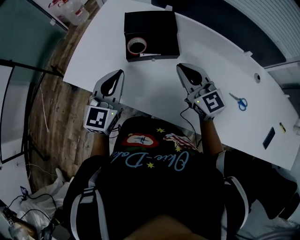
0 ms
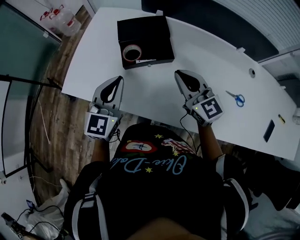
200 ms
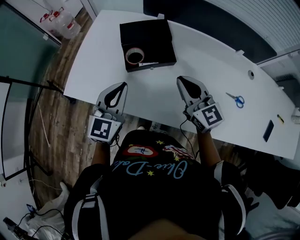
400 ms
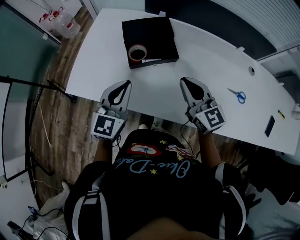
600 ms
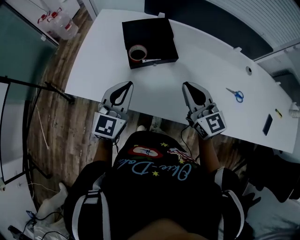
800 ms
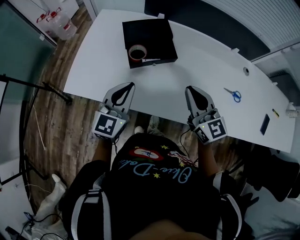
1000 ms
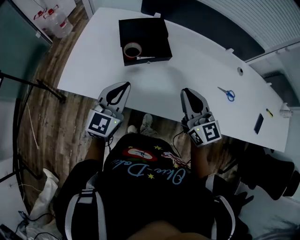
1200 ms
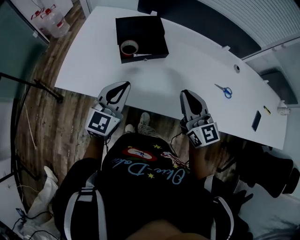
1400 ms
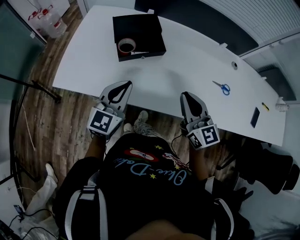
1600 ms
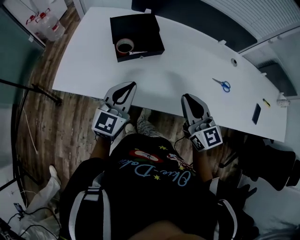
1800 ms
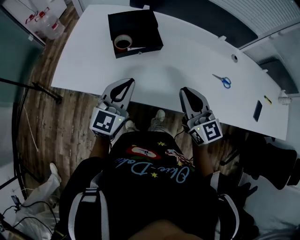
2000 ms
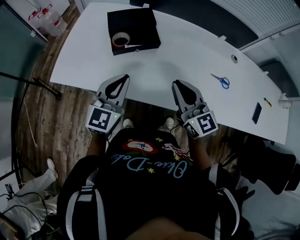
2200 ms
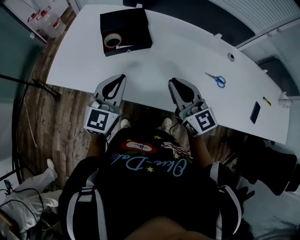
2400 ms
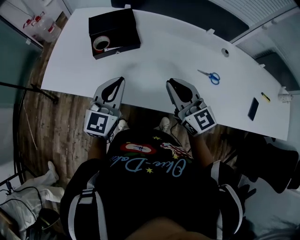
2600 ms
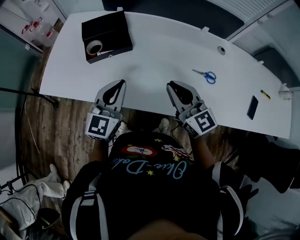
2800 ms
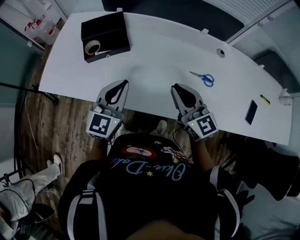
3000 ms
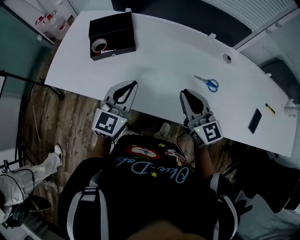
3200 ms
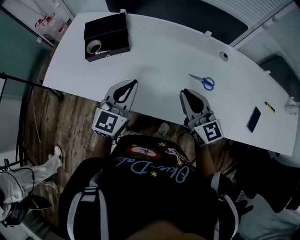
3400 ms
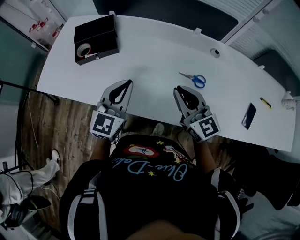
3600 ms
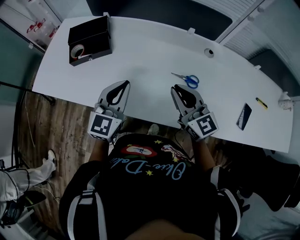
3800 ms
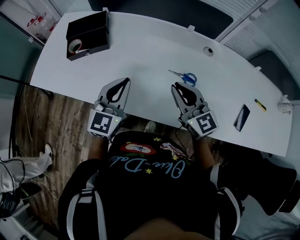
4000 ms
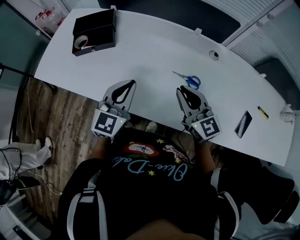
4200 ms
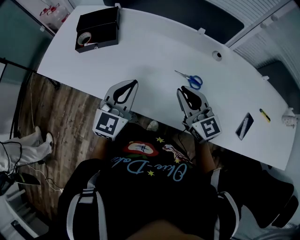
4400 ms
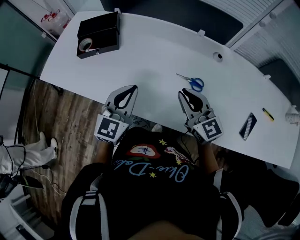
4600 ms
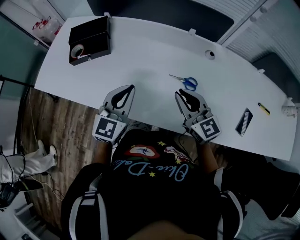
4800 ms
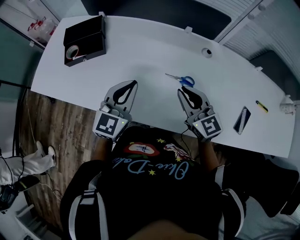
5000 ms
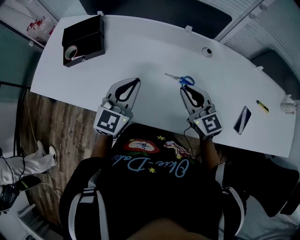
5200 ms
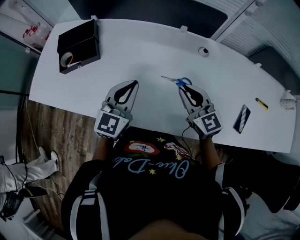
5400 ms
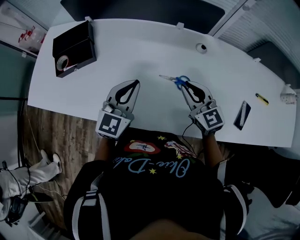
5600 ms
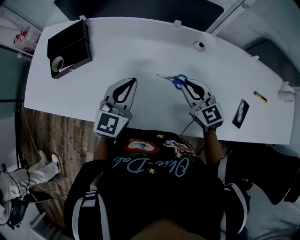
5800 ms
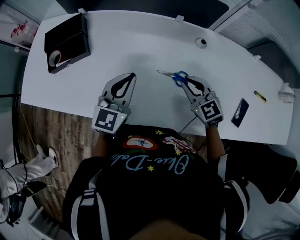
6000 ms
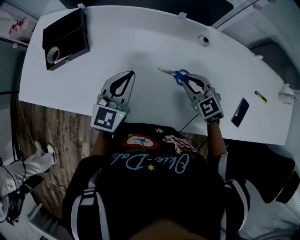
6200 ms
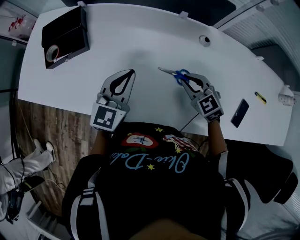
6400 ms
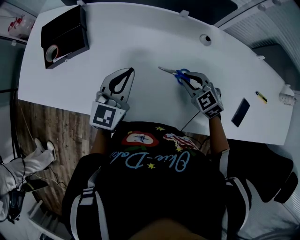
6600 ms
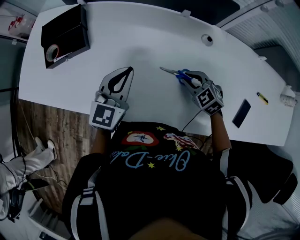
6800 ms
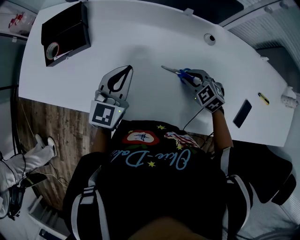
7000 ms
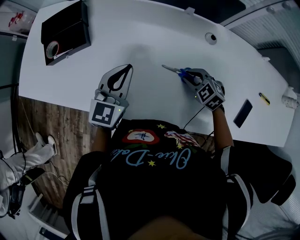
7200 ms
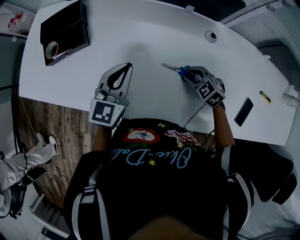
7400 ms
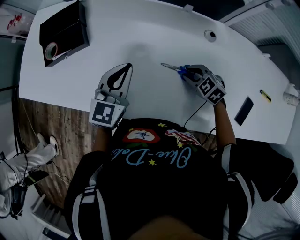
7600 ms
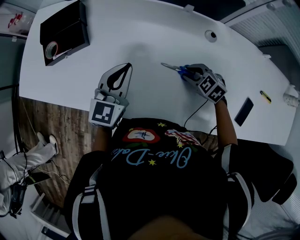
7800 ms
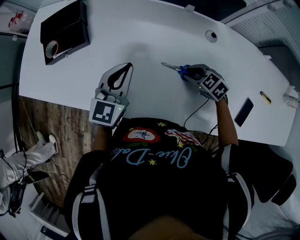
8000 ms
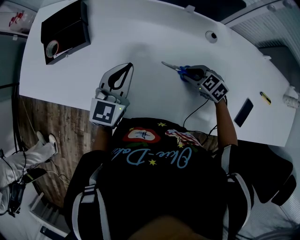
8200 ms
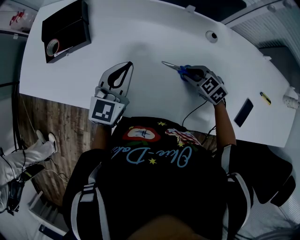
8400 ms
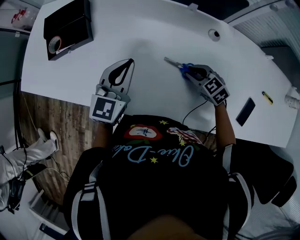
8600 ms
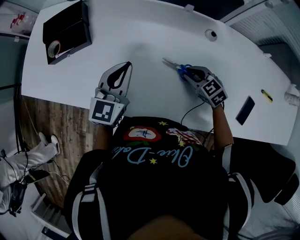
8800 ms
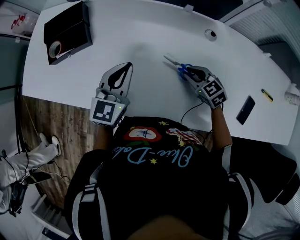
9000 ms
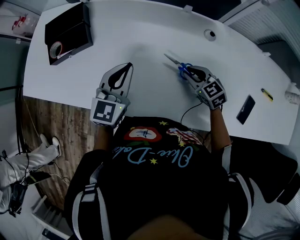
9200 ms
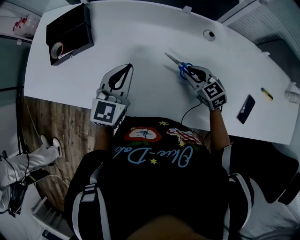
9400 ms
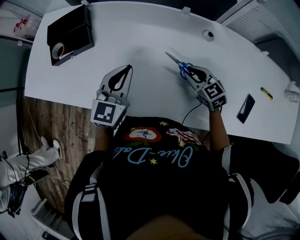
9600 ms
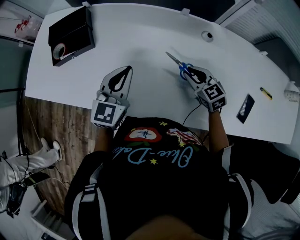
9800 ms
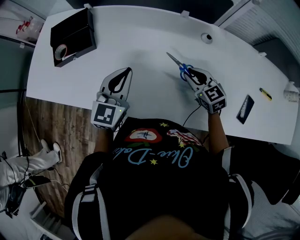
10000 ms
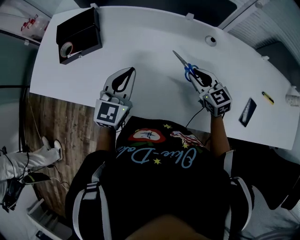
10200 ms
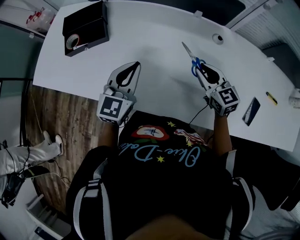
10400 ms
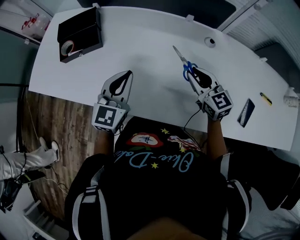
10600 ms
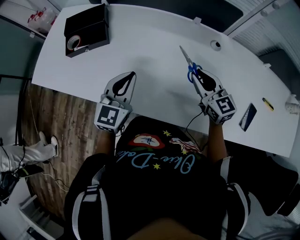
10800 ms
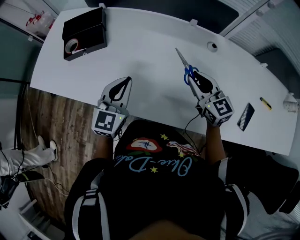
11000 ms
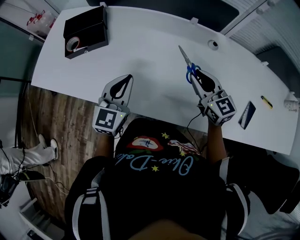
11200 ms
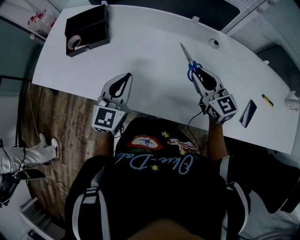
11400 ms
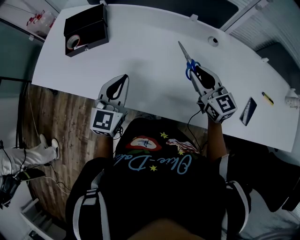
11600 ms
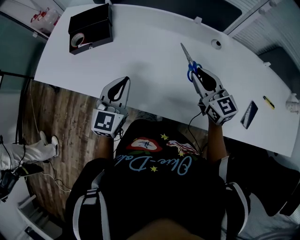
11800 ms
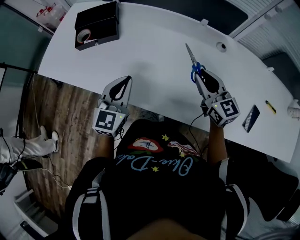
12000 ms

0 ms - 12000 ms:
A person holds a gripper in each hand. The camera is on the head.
0 ms - 1600 ms: The left gripper goes some 5 cm backward. The right gripper goes some 15 cm backward, and swivels approximately 20 degrees.
1600 ms - 3000 ms: The grippers both shift to the right by approximately 15 cm.
3000 ms - 4400 ms: The grippers both shift to the right by approximately 15 cm.
4400 ms - 6000 ms: The left gripper heads forward and to the right, covering some 10 cm; the right gripper heads to the right, downward and forward, covering some 15 cm, and rotates about 30 degrees.
6000 ms - 7600 ms: The right gripper moves downward, about 10 cm, and rotates approximately 30 degrees.
7600 ms - 9000 ms: The grippers move only a little.
9000 ms - 10400 ms: The right gripper goes approximately 10 cm upward, and changes its angle by roughly 30 degrees.
10400 ms - 12000 ms: The right gripper goes roughly 5 cm upward. The left gripper shifts approximately 10 cm backward and to the left.

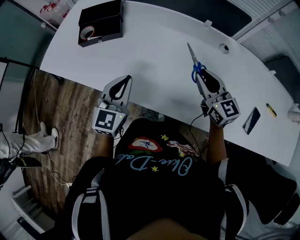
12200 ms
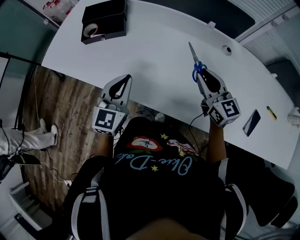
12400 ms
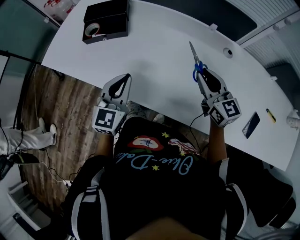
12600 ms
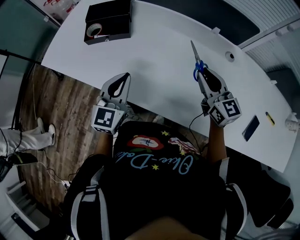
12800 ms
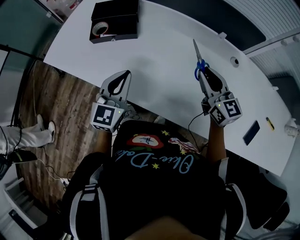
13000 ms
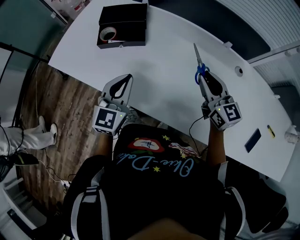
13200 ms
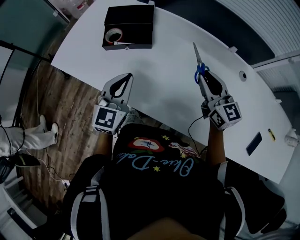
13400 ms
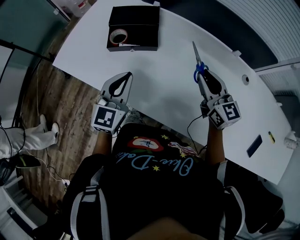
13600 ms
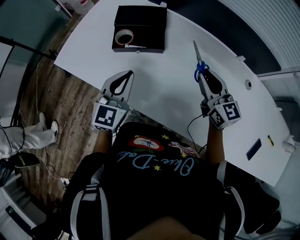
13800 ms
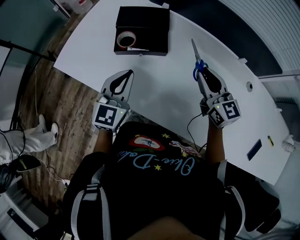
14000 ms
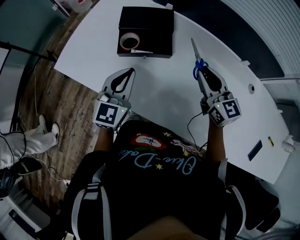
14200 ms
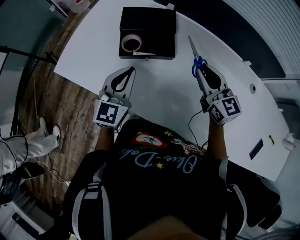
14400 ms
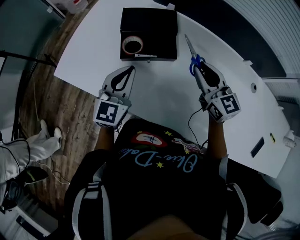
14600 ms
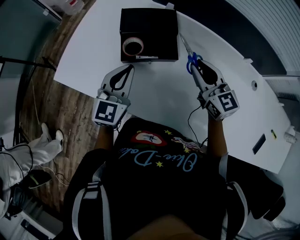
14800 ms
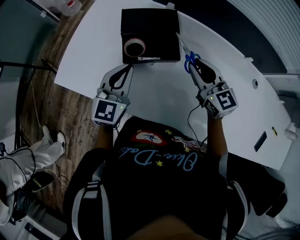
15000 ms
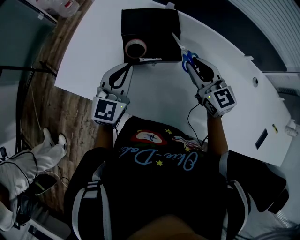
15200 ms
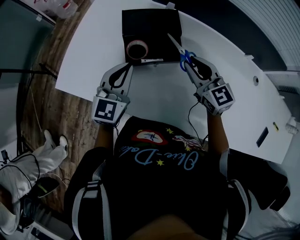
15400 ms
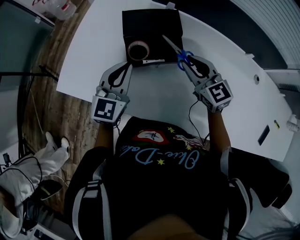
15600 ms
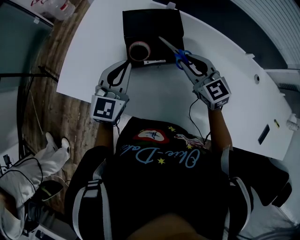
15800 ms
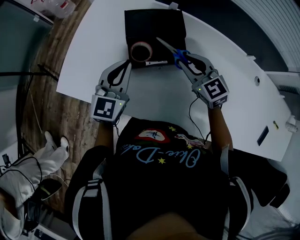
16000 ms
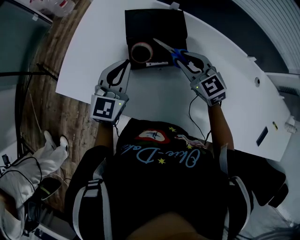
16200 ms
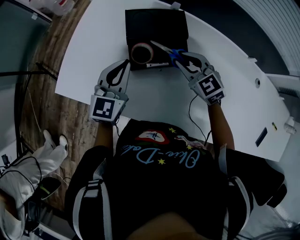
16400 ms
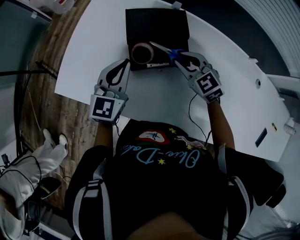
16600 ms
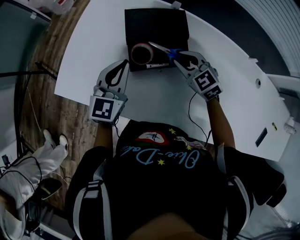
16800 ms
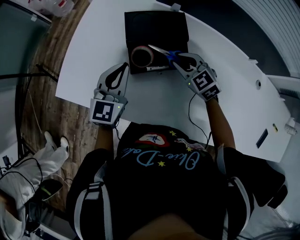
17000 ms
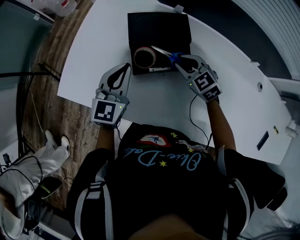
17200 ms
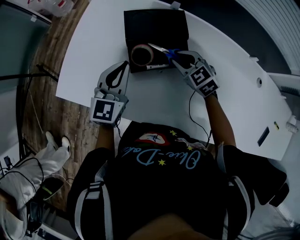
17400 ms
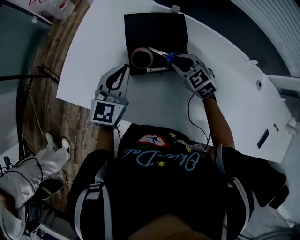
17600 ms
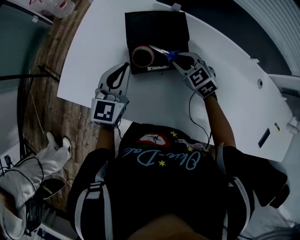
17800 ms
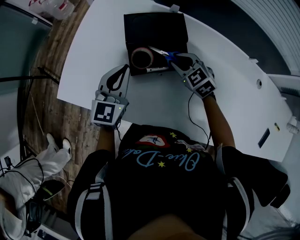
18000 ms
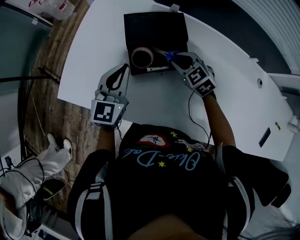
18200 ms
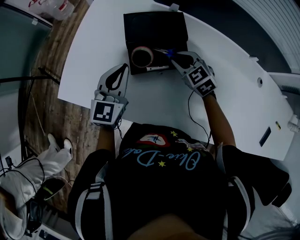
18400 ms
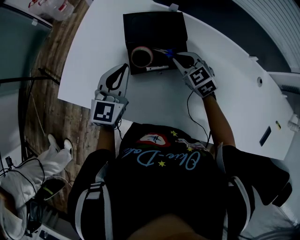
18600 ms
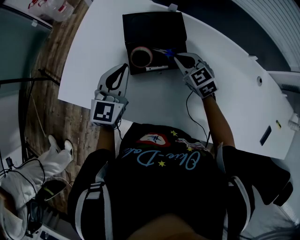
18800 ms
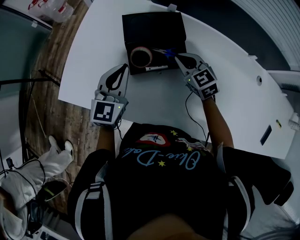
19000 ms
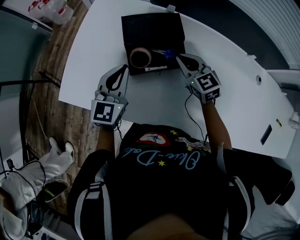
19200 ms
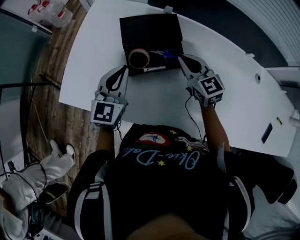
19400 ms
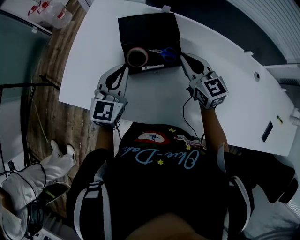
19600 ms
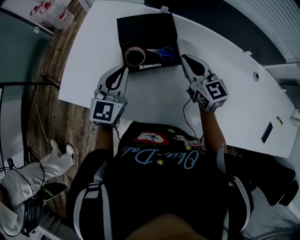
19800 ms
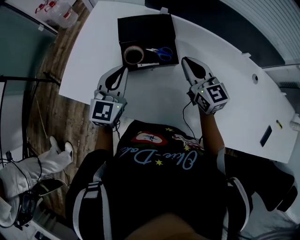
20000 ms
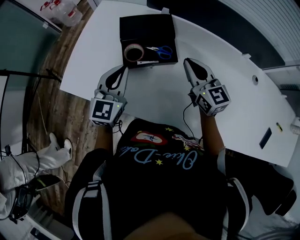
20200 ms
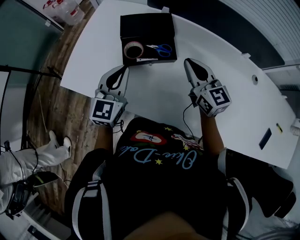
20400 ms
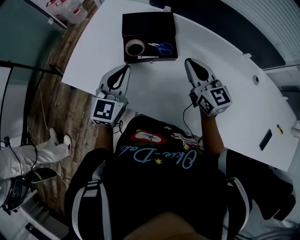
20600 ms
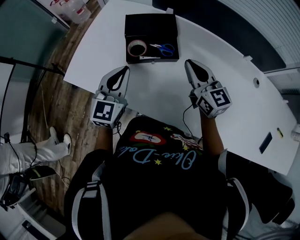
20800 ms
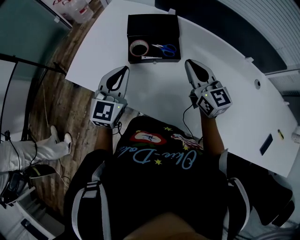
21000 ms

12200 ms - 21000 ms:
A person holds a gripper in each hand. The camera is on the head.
12200 ms - 13600 ms: The grippers both shift to the left and forward by roughly 20 cm.
13600 ms - 15200 ms: The right gripper heads to the left and forward, covering roughly 20 cm. Meanwhile the left gripper travels forward and to the left by approximately 15 cm.
15200 ms - 16600 ms: The right gripper travels downward, to the left and forward by approximately 10 cm, and swivels some 30 degrees. The left gripper ends up about 5 cm from where it was.
16600 ms - 18000 ms: The grippers move only a little.
18000 ms - 19600 ms: The right gripper is displaced upward by roughly 10 cm, and swivels approximately 40 degrees.
19600 ms - 21000 ms: Both grippers travel together backward, about 10 cm.

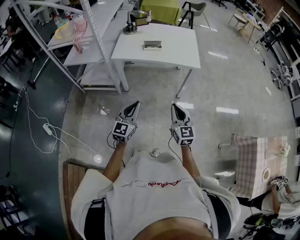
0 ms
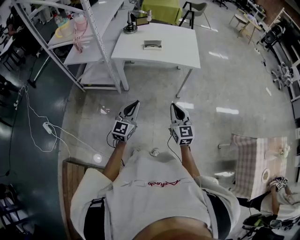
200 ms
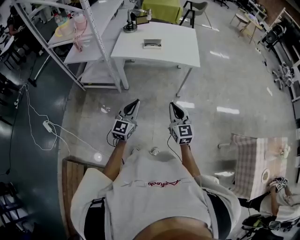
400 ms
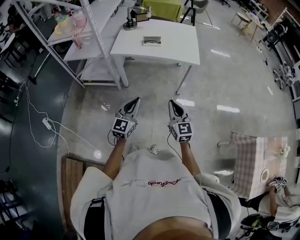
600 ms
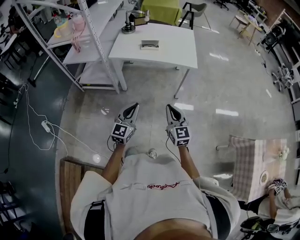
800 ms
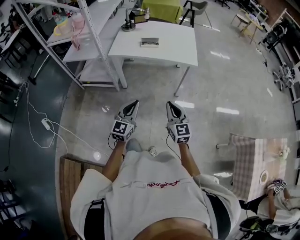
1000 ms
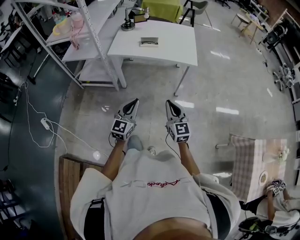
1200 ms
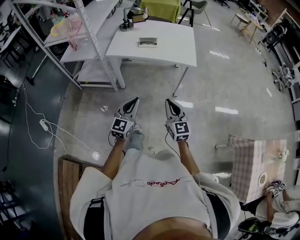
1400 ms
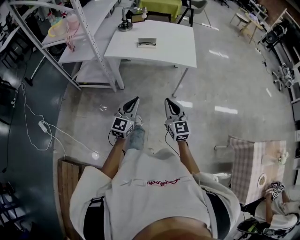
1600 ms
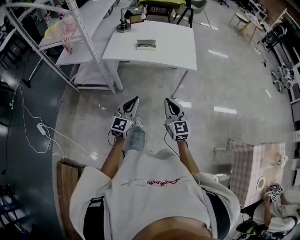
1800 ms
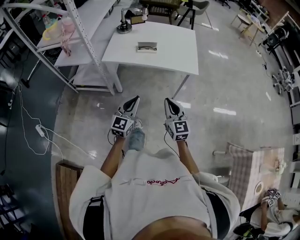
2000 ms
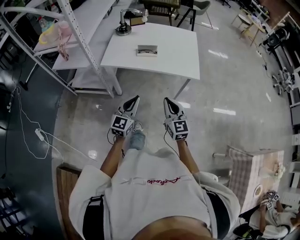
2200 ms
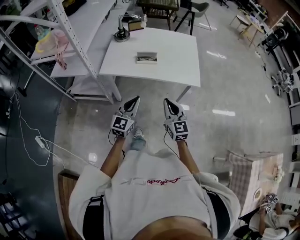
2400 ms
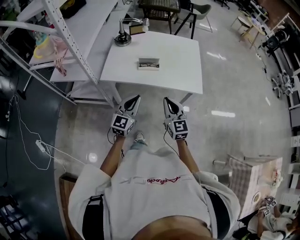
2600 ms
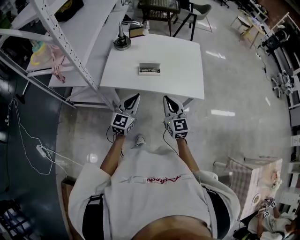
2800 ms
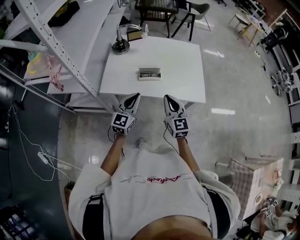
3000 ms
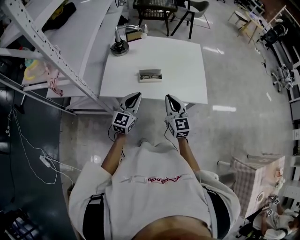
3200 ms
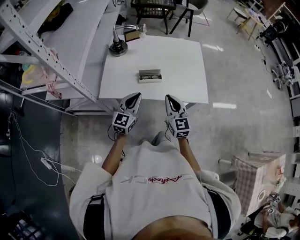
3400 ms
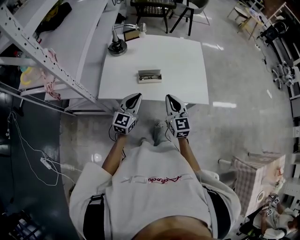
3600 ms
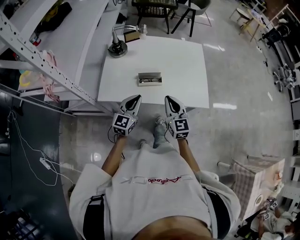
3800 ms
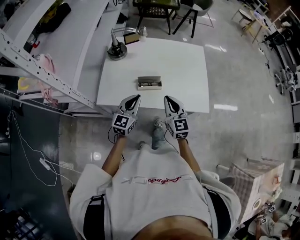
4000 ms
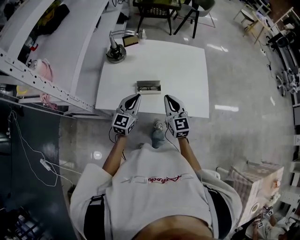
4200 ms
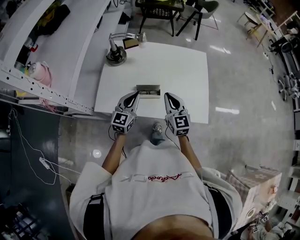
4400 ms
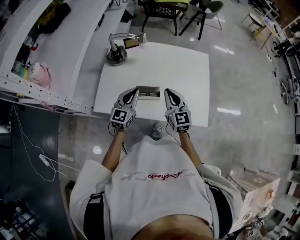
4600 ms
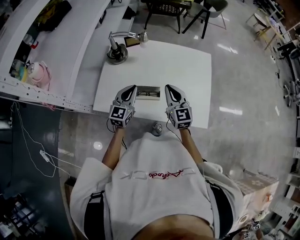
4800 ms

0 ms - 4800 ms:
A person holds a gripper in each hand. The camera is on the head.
0 ms - 1600 ms: The left gripper shifts some 5 cm to the right; the right gripper moves about 5 cm.
1600 ms - 3200 ms: Both grippers travel together forward, approximately 35 cm.
3200 ms - 4800 ms: Both grippers move forward, some 20 cm.
